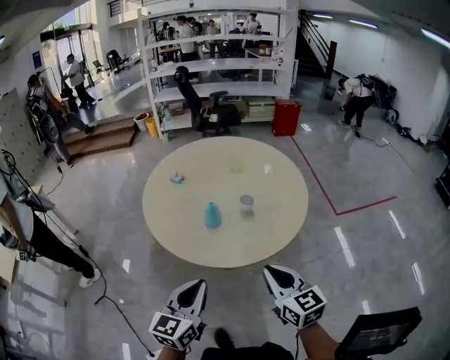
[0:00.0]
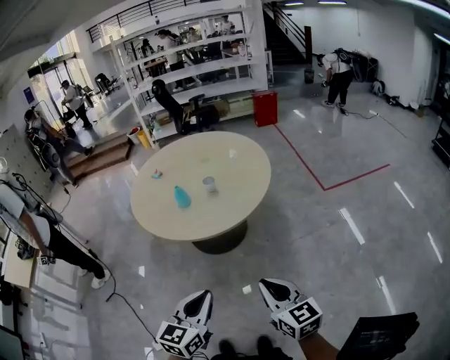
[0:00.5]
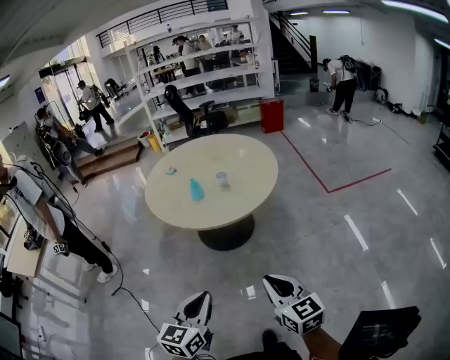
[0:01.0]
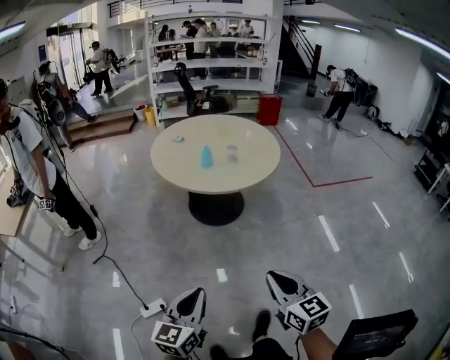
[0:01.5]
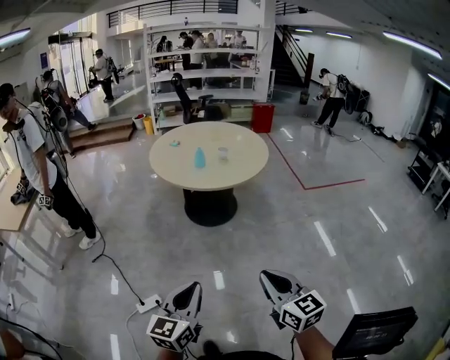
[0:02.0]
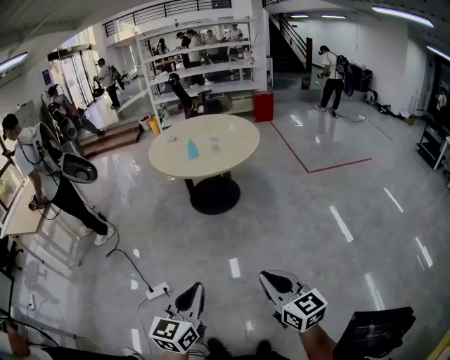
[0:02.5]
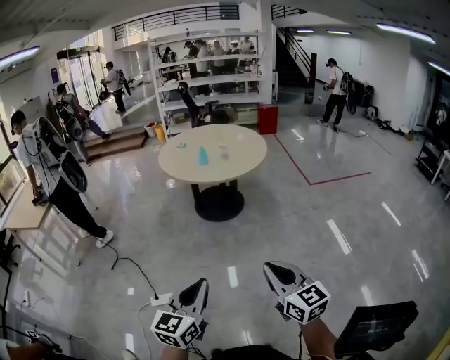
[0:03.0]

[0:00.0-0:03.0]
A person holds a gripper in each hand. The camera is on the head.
0:00.0 to 0:01.5: The two grippers travel together, backward, about 40 cm.
0:01.5 to 0:03.0: The left gripper travels backward and to the right by about 25 cm. Meanwhile the right gripper moves backward, about 20 cm.

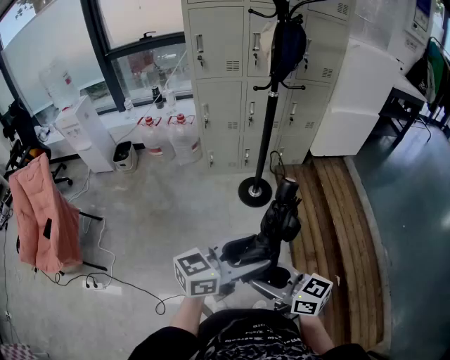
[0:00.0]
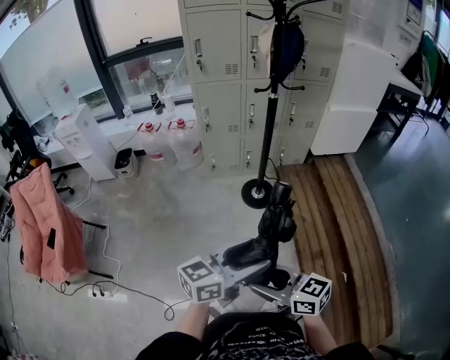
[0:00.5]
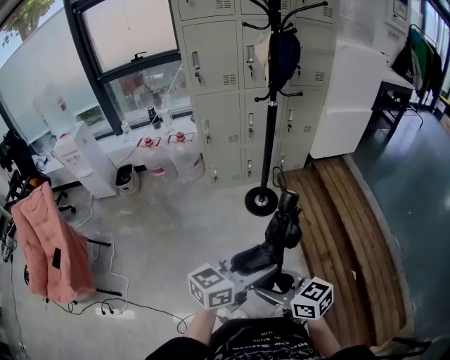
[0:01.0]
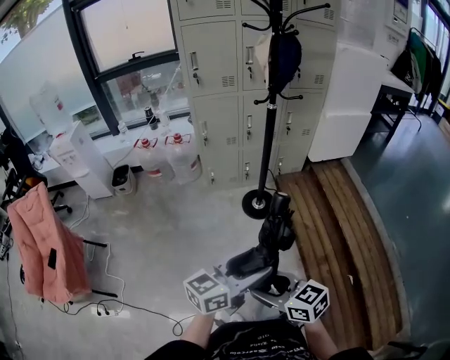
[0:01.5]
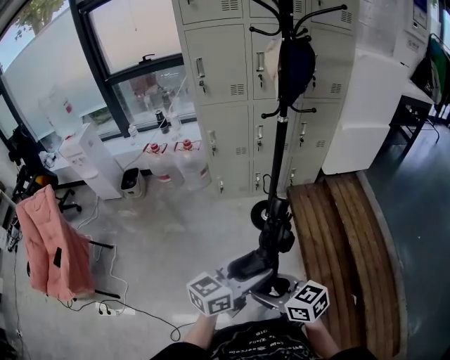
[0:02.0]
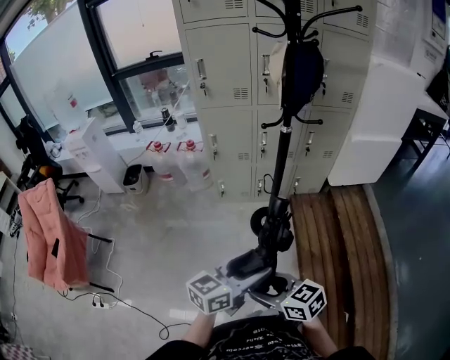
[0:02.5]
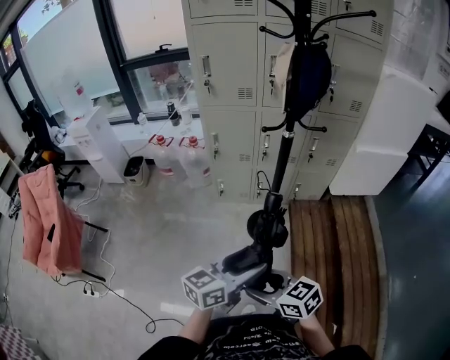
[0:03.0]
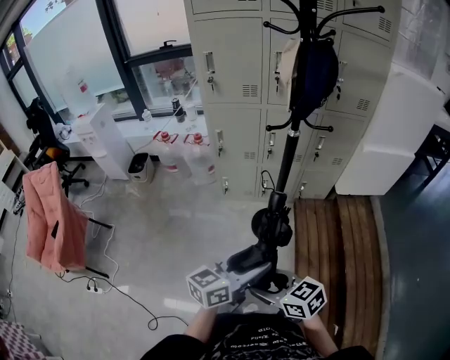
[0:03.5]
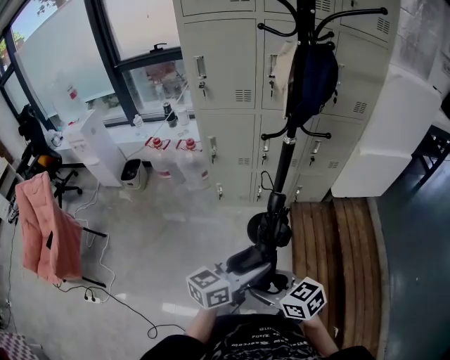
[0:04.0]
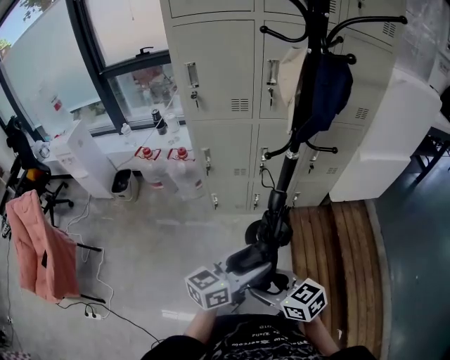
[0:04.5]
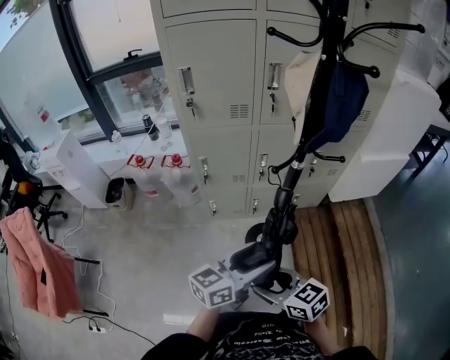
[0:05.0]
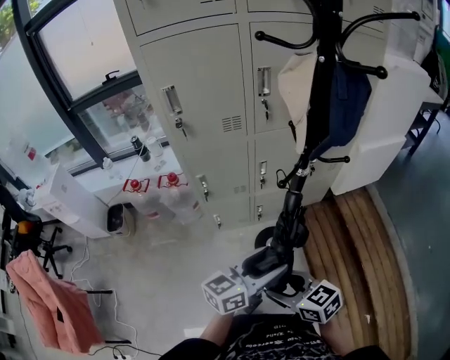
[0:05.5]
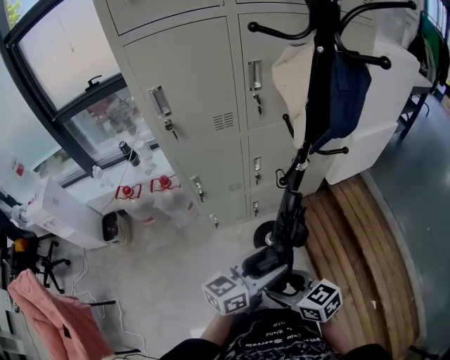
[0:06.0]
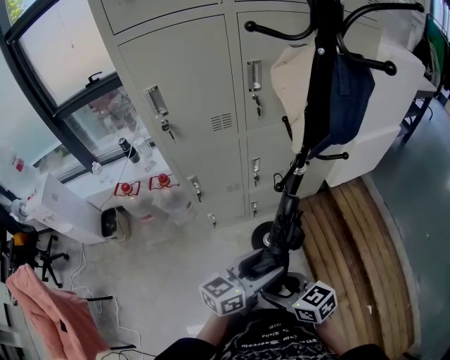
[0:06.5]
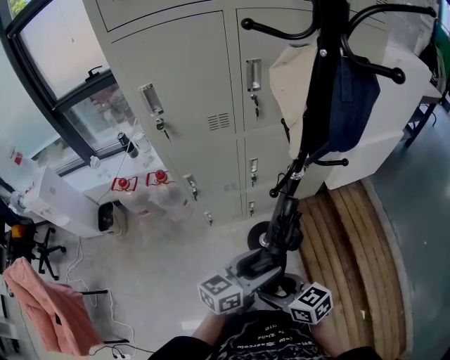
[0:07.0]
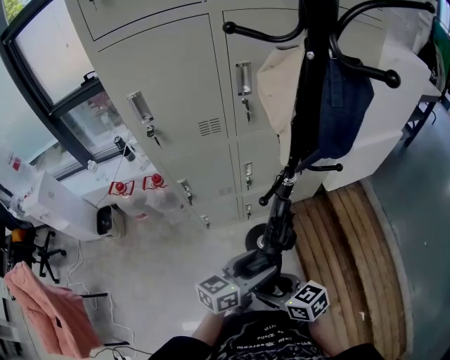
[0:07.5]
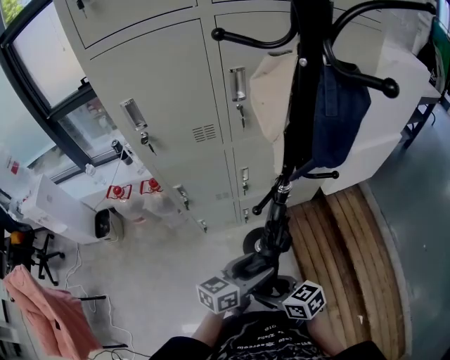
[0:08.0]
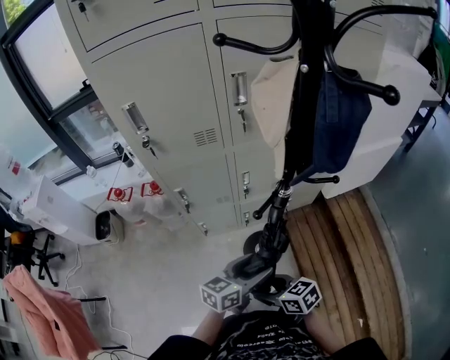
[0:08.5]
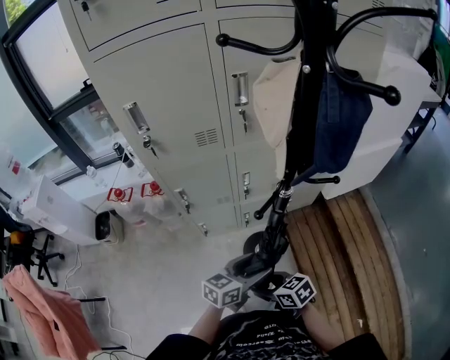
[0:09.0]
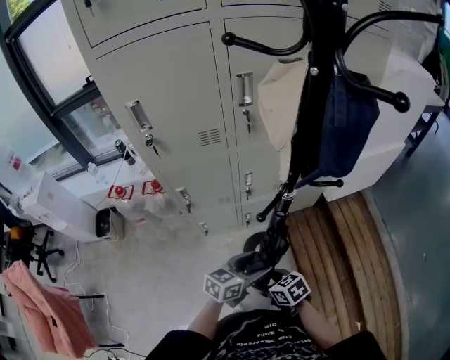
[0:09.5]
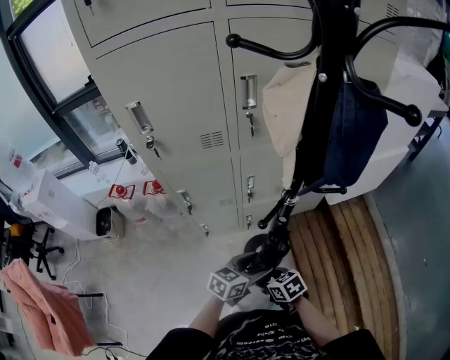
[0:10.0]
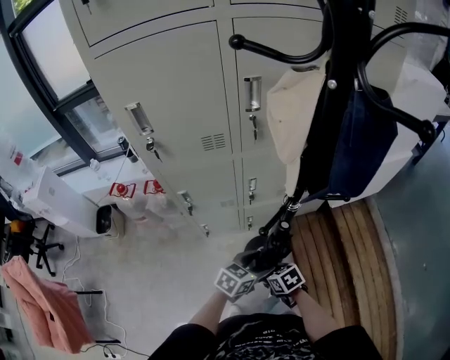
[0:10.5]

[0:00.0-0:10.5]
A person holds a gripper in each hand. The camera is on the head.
0:00.0 to 0:02.0: Both grippers move forward, about 10 cm.
0:02.0 to 0:04.0: The two grippers go roughly 20 cm forward and to the right.
0:04.0 to 0:06.5: The left gripper goes roughly 20 cm forward. The right gripper shifts approximately 20 cm forward and to the left.
0:06.5 to 0:08.5: Both grippers move downward and forward, approximately 10 cm.
0:08.5 to 0:10.5: The right gripper is displaced downward and forward by approximately 15 cm, and swivels some 20 degrees. The left gripper goes some 10 cm downward, and turns by approximately 20 degrees.

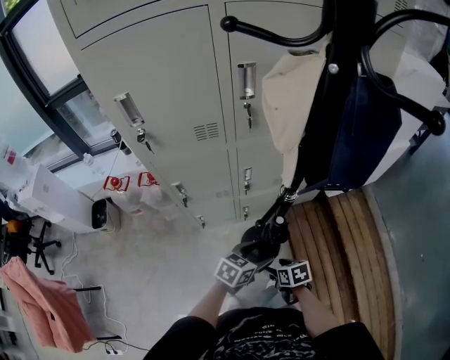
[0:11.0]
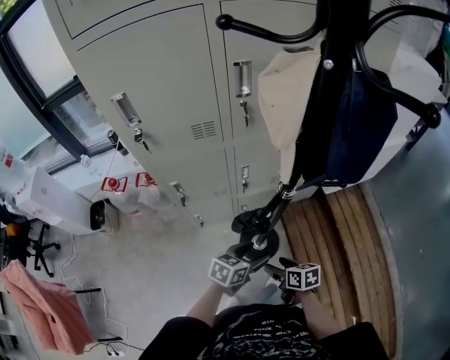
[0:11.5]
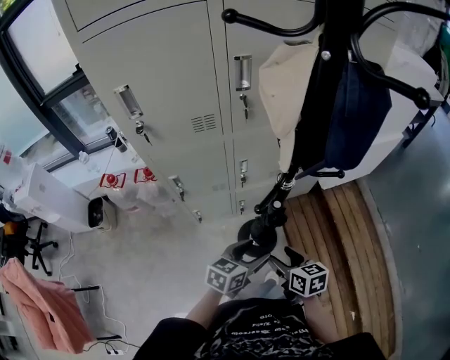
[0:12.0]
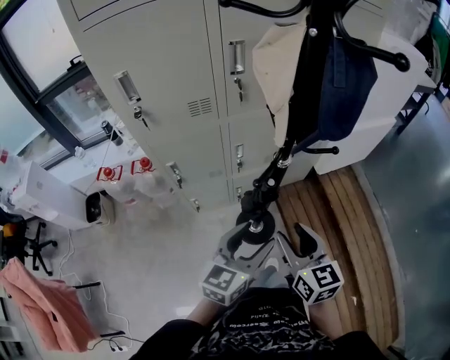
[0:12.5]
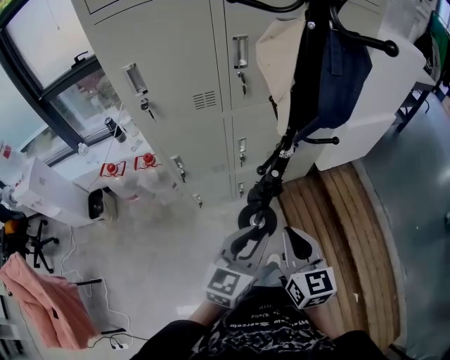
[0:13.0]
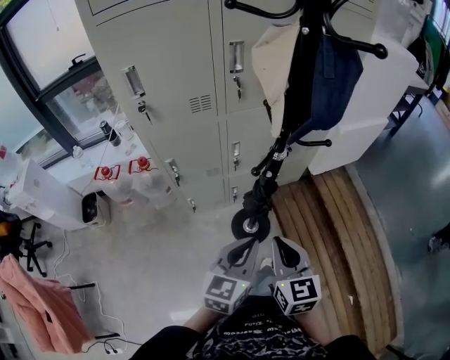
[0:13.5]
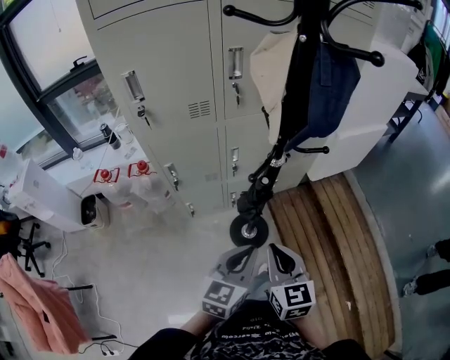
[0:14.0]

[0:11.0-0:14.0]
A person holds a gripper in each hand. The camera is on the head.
0:11.0 to 0:12.5: The right gripper moves upward, about 30 cm, and angles its fingers upward, by approximately 40 degrees, while the left gripper travels upward by roughly 20 cm, and swivels about 30 degrees.
0:12.5 to 0:14.0: The grippers both shift backward by about 5 cm. The left gripper closes up. Meanwhile the right gripper closes up.

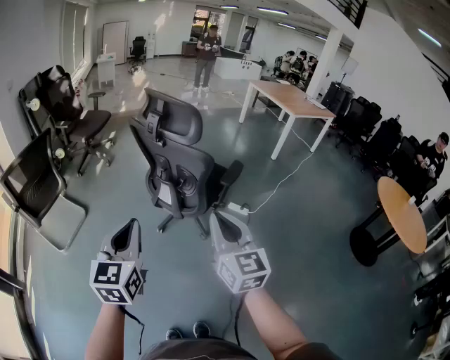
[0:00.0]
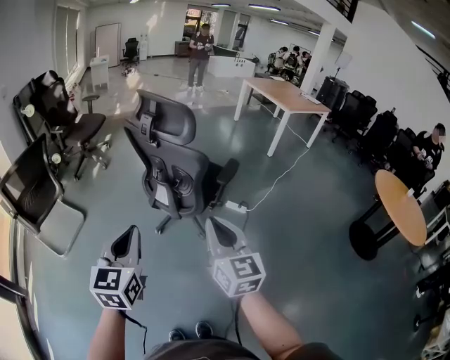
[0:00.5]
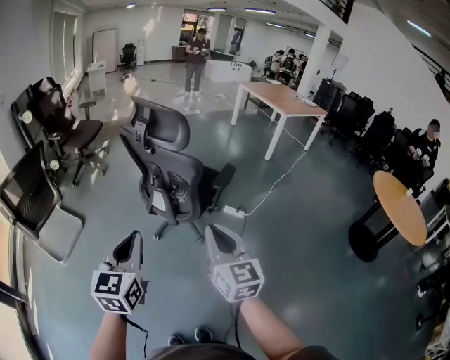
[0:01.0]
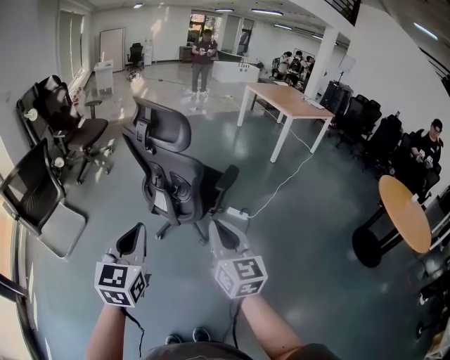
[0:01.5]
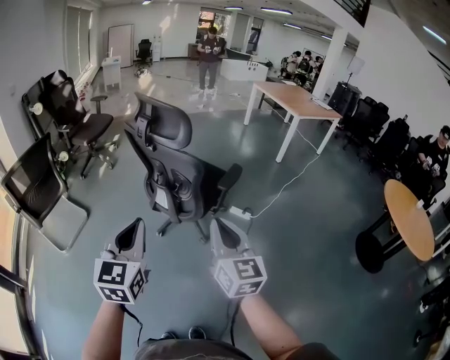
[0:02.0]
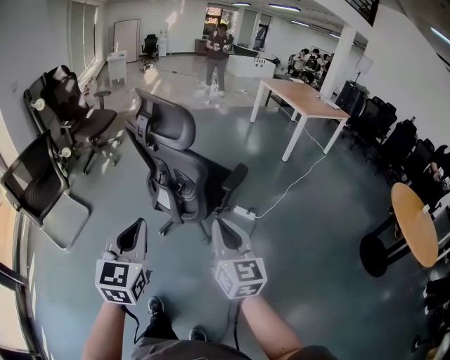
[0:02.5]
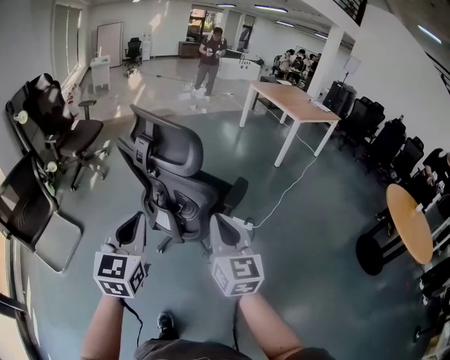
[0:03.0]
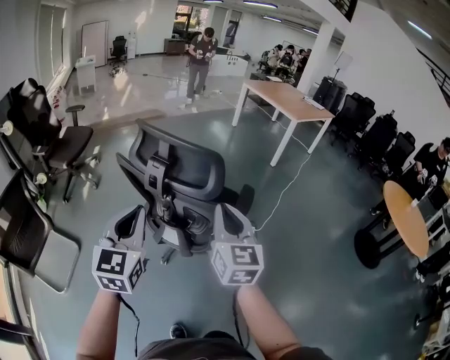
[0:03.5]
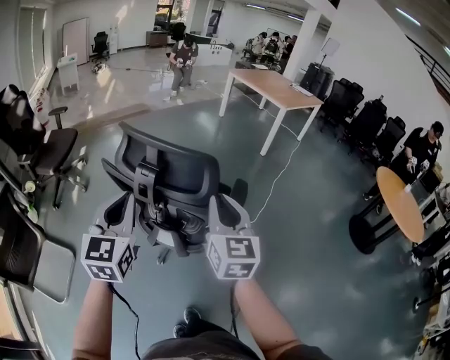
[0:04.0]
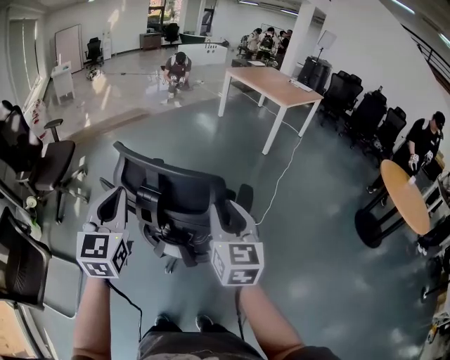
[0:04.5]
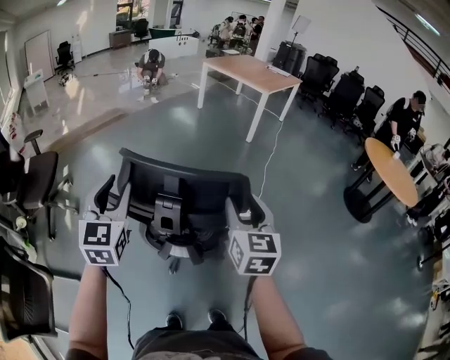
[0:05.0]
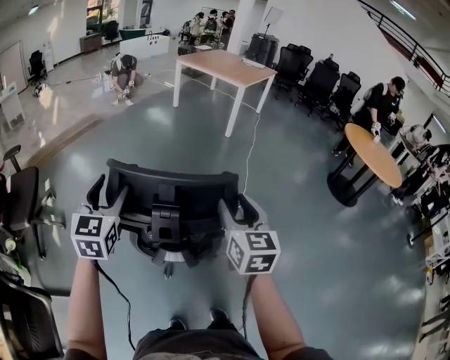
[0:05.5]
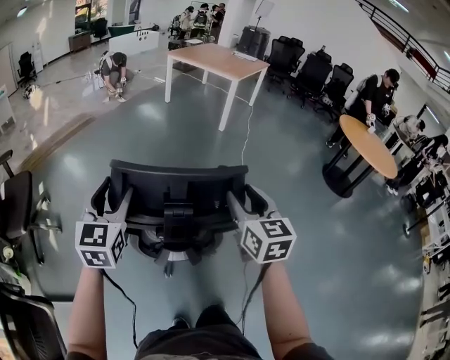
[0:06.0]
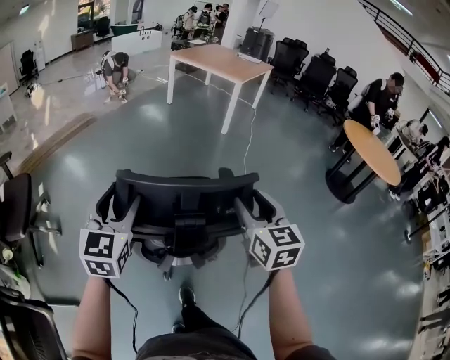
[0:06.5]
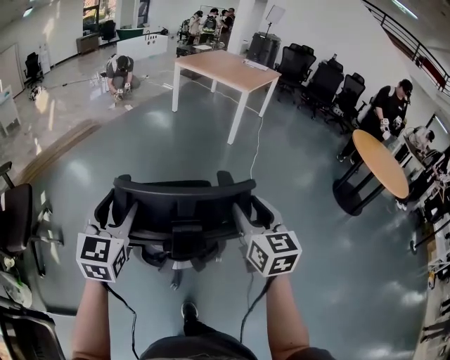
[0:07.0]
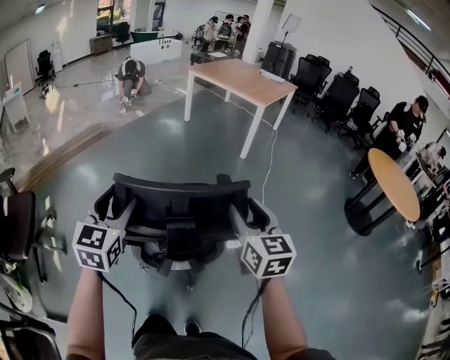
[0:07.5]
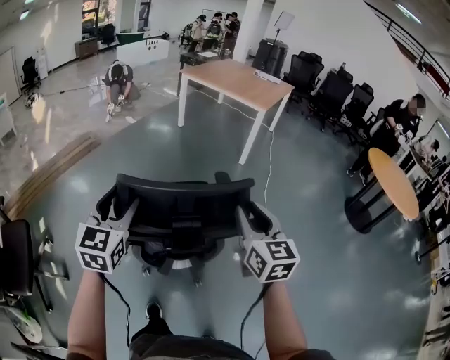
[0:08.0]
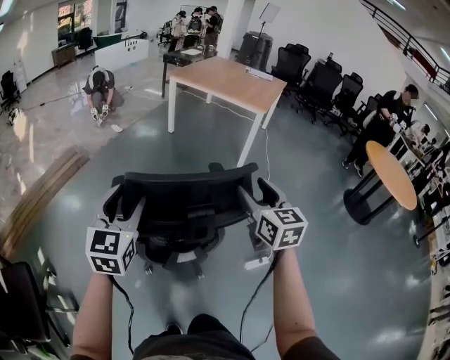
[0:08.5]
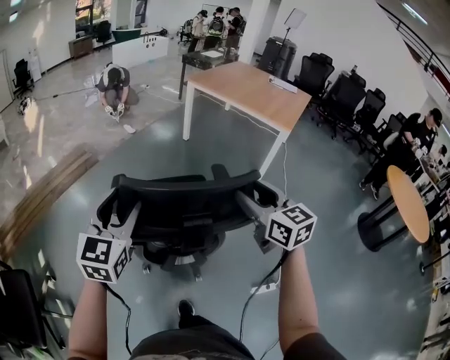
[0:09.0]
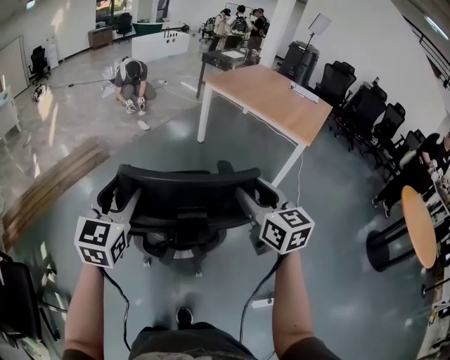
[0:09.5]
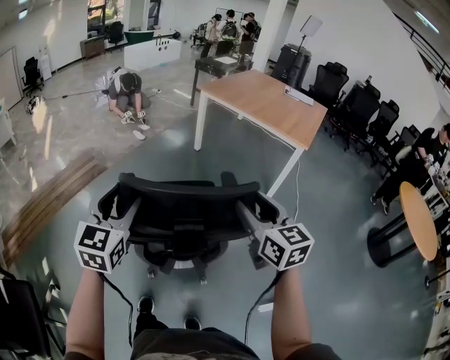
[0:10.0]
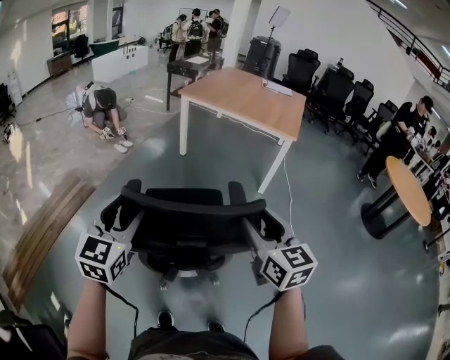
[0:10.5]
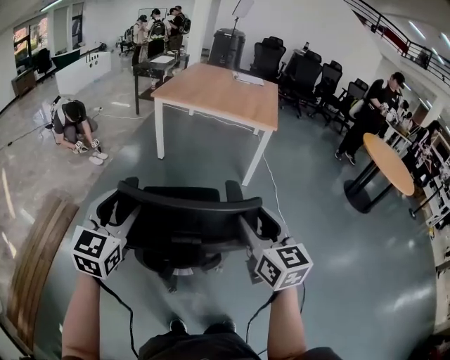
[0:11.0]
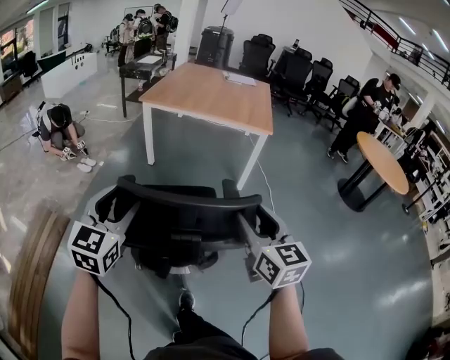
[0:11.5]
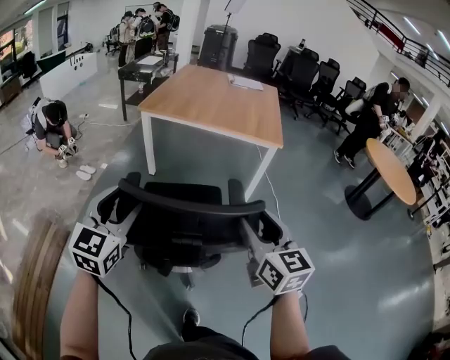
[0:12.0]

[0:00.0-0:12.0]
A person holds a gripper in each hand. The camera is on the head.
0:00.0 to 0:02.0: The two grippers go some 5 cm to the right.
0:02.0 to 0:04.0: The grippers both shift forward by roughly 30 cm. The right gripper turns by approximately 20 degrees.
0:04.0 to 0:06.0: The right gripper moves forward, approximately 5 cm, and opens. The left gripper travels forward and to the left by some 20 cm, and opens up.
0:06.0 to 0:08.0: The two grippers go approximately 35 cm forward.
0:08.0 to 0:10.0: The two grippers travel together, forward, some 40 cm. The right gripper opens up.
0:10.0 to 0:12.0: The left gripper moves approximately 35 cm, and rotates roughly 30 degrees, while the right gripper moves roughly 20 cm, and turns by approximately 30 degrees.
